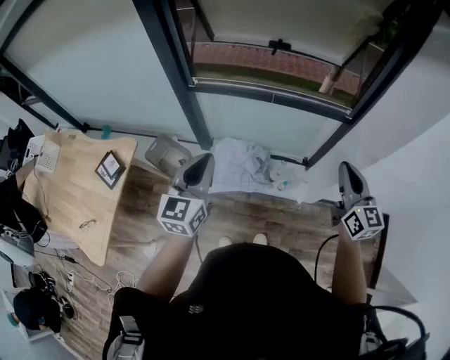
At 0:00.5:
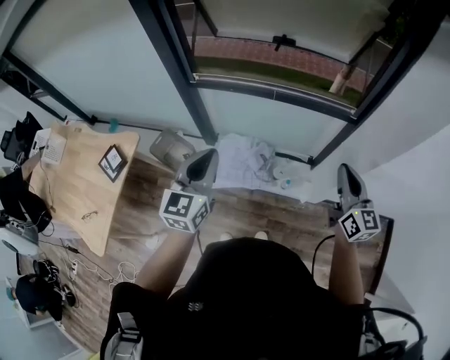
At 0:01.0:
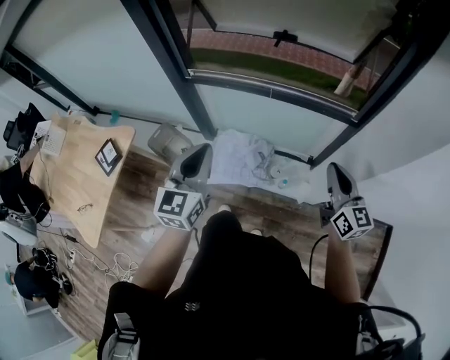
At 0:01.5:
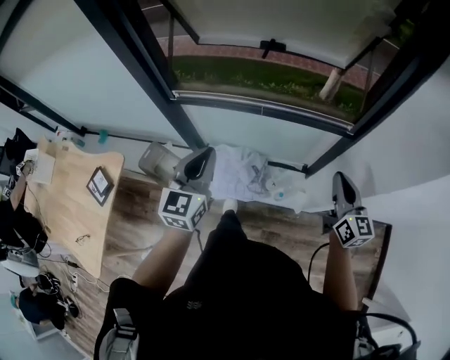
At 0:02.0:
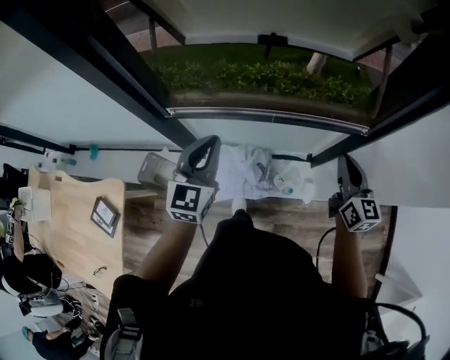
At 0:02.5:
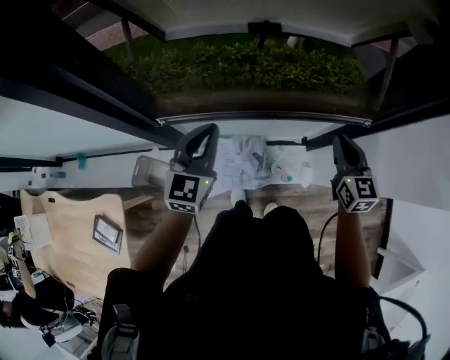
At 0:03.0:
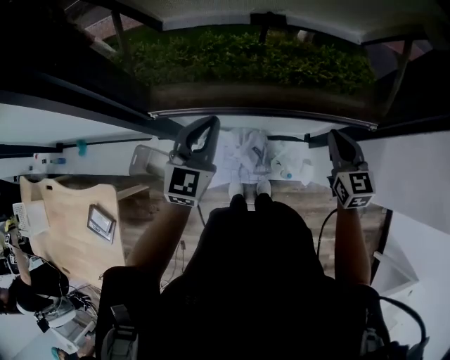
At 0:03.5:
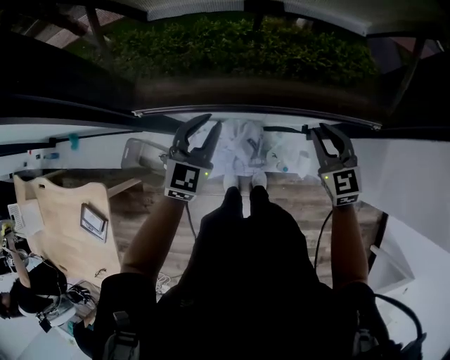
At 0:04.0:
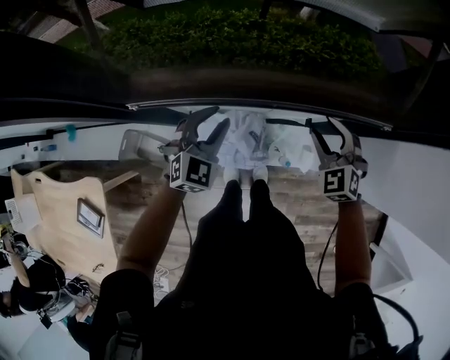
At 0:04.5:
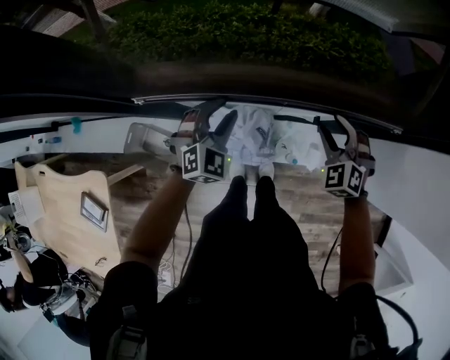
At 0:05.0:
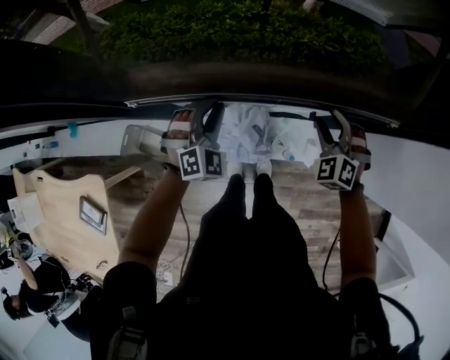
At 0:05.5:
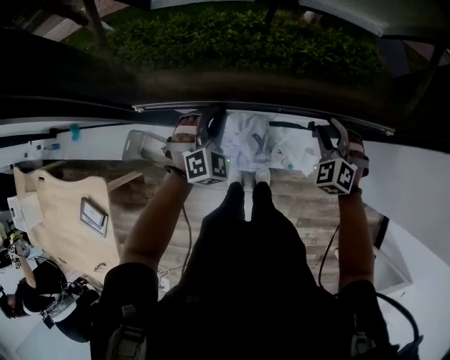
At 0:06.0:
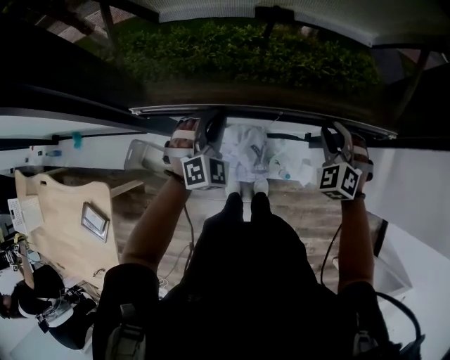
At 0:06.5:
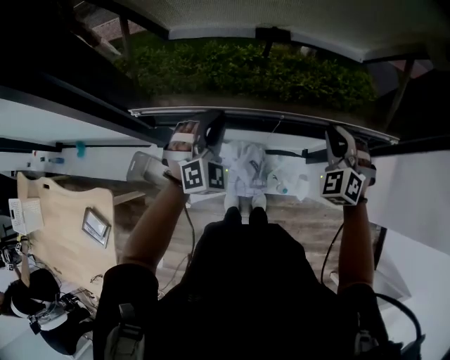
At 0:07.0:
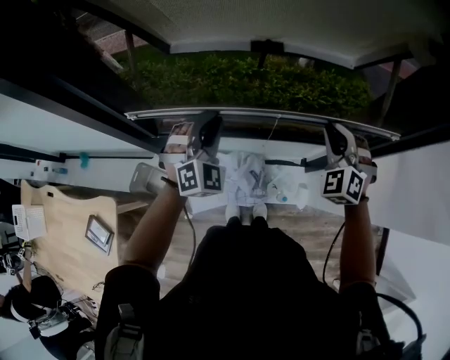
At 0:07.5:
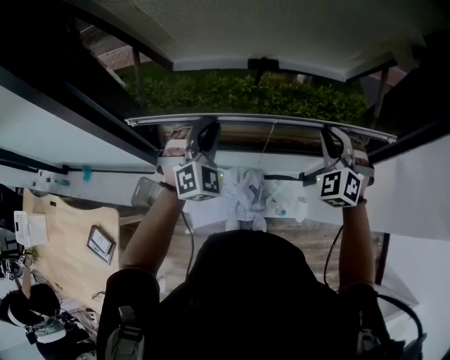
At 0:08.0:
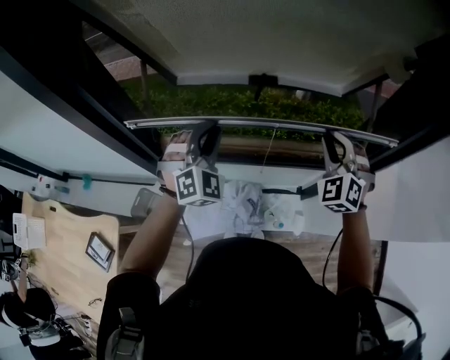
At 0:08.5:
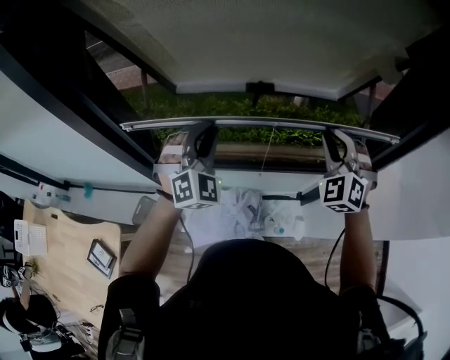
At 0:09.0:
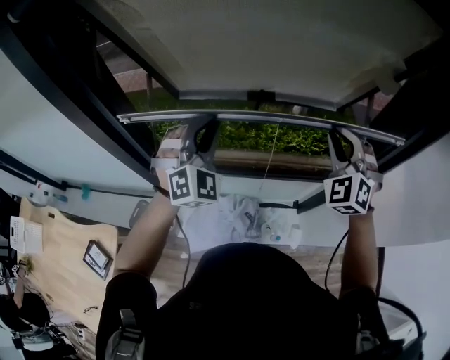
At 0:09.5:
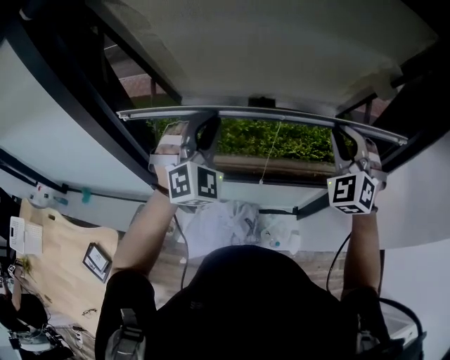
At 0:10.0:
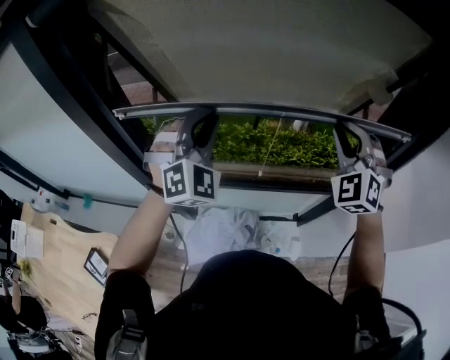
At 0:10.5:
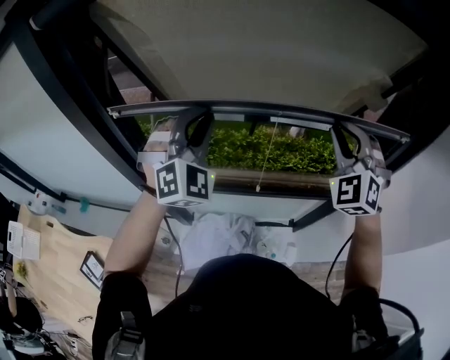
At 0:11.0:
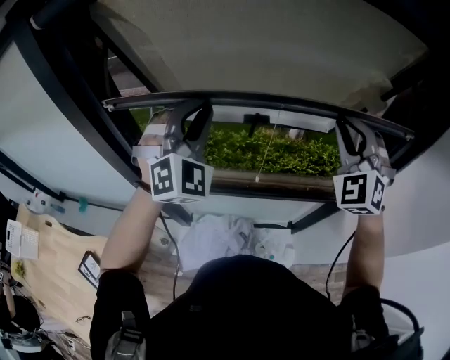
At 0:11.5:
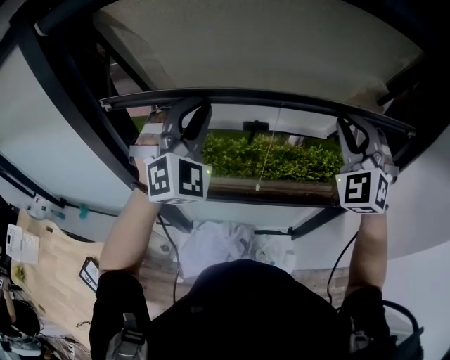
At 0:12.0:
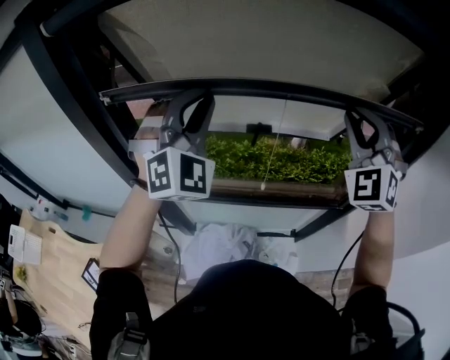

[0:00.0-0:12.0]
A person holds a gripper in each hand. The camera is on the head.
0:00.0 to 0:02.0: Both grippers travel together forward, about 30 cm.
0:02.0 to 0:04.0: The left gripper heads downward and forward, covering approximately 25 cm, changes its angle by approximately 30 degrees, and opens up; the right gripper heads downward, forward and to the left, covering about 20 cm, rotates around the line of its fingers by about 50 degrees, counterclockwise from behind, and opens up.
0:04.0 to 0:06.0: The left gripper rotates about 30 degrees.
0:06.0 to 0:08.0: The two grippers go approximately 20 cm upward.
0:08.0 to 0:10.0: The two grippers go approximately 15 cm upward.
0:10.0 to 0:12.0: Both grippers travel together upward, roughly 10 cm.

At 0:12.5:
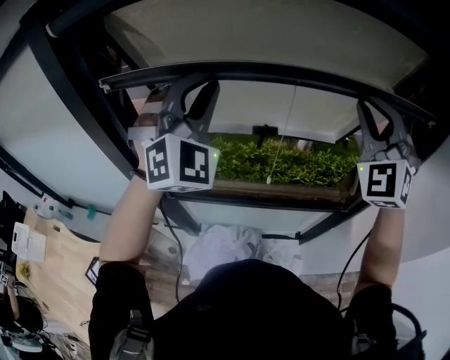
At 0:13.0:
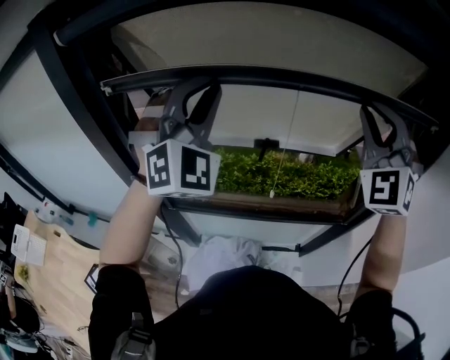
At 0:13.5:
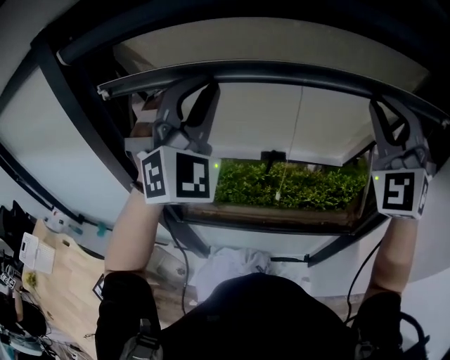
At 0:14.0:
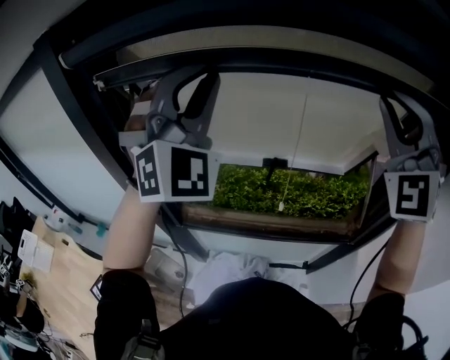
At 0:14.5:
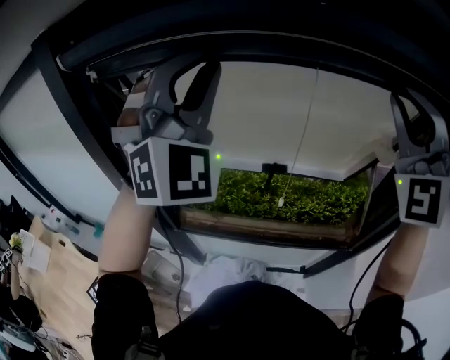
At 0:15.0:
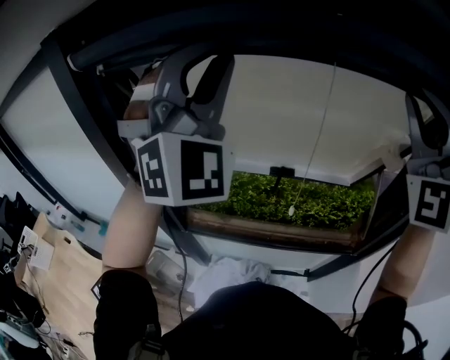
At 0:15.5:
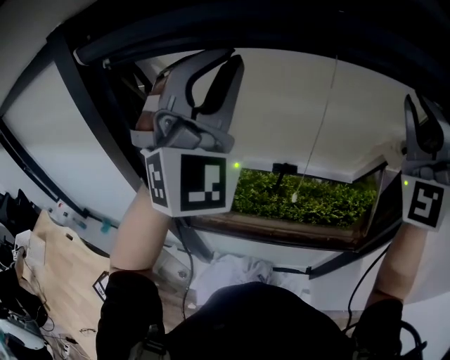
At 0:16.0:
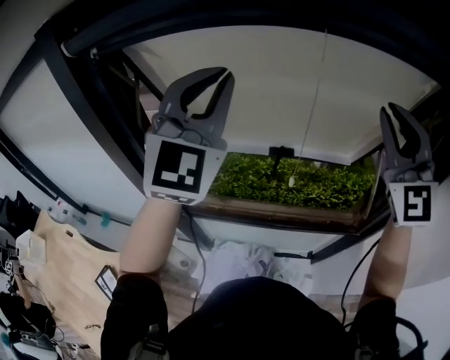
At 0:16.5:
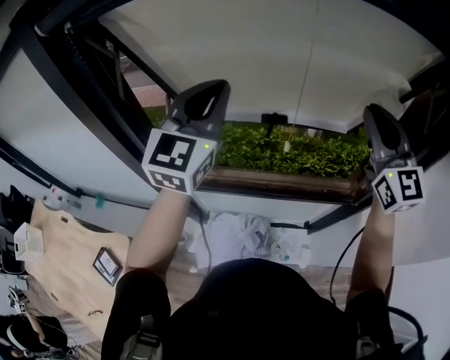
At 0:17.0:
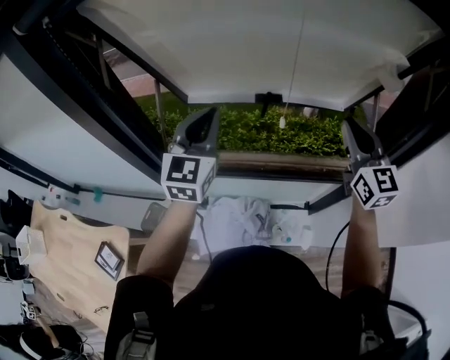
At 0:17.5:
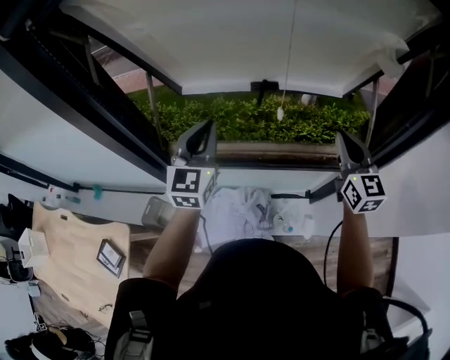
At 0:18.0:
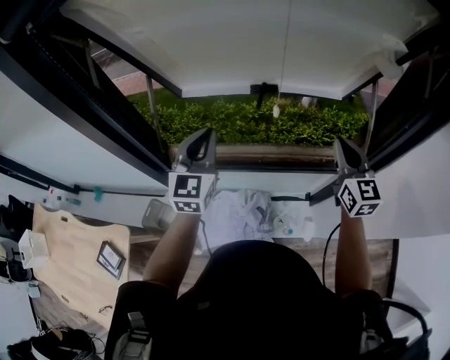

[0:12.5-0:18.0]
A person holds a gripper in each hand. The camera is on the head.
0:12.5 to 0:14.5: The grippers both shift upward by roughly 15 cm.
0:14.5 to 0:16.0: The left gripper changes its angle by about 30 degrees, while the right gripper heads downward, covering roughly 5 cm, and swivels roughly 30 degrees.
0:16.0 to 0:18.0: The grippers both shift downward by approximately 35 cm. The left gripper changes its angle by some 40 degrees, while the right gripper rotates around the line of its fingers by about 40 degrees, clockwise from behind.

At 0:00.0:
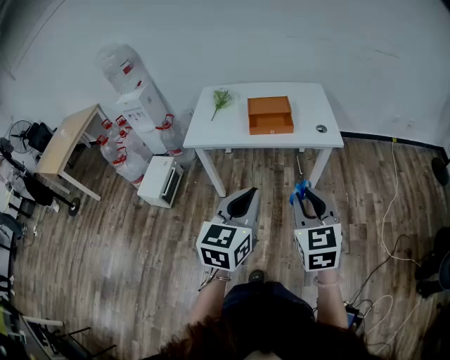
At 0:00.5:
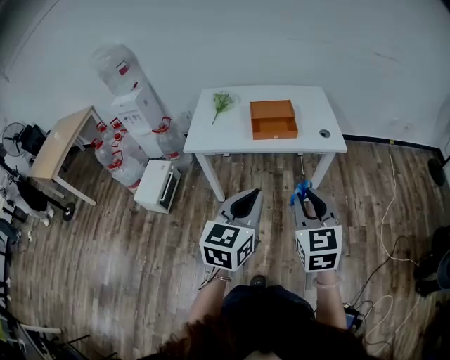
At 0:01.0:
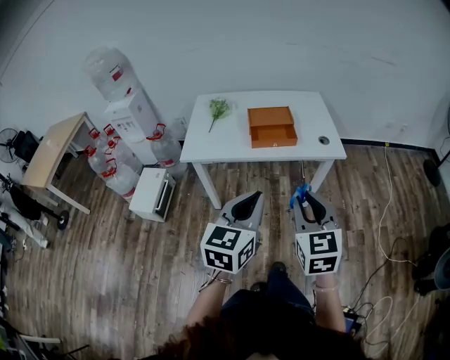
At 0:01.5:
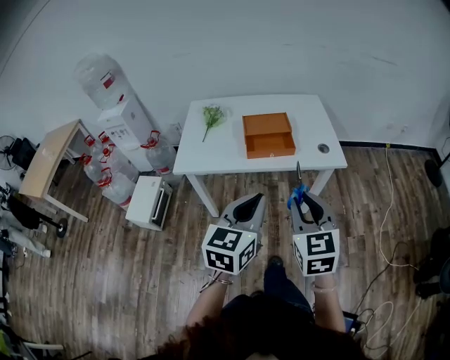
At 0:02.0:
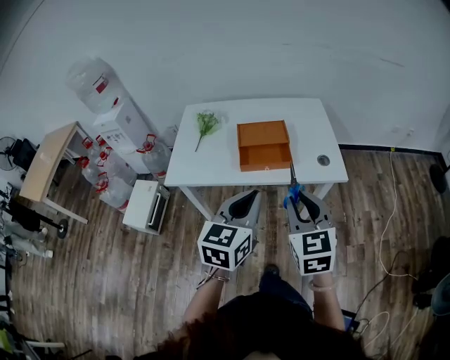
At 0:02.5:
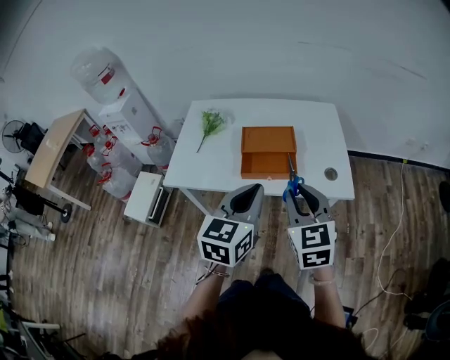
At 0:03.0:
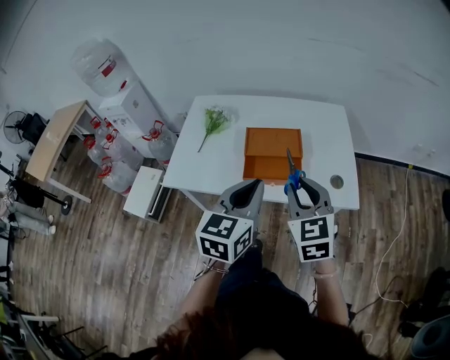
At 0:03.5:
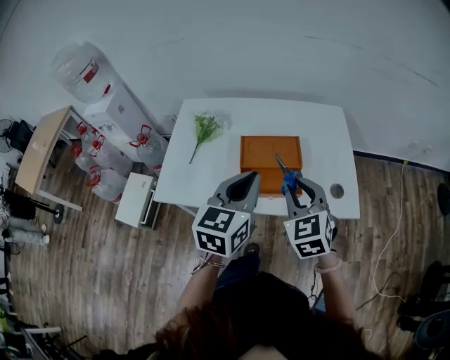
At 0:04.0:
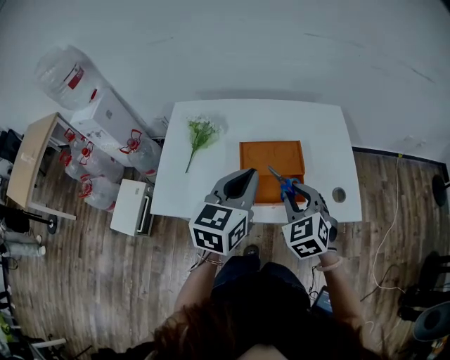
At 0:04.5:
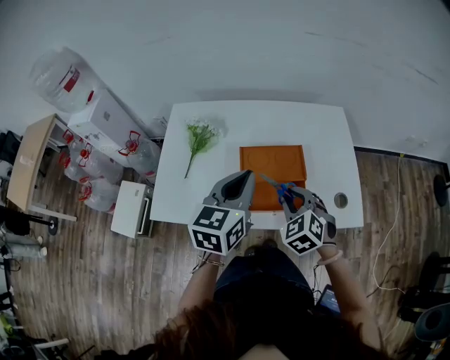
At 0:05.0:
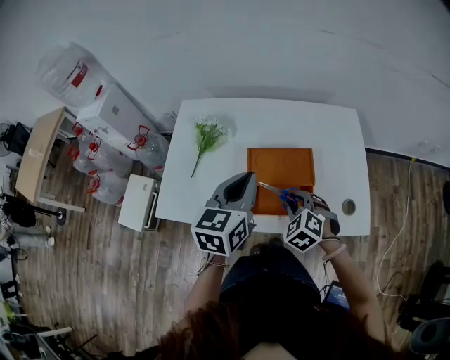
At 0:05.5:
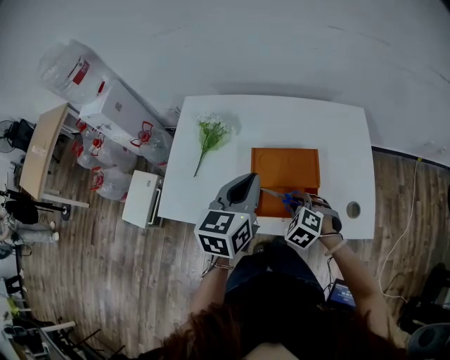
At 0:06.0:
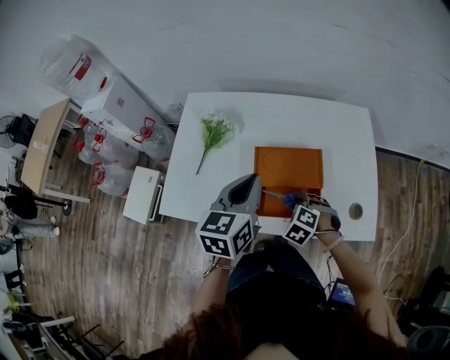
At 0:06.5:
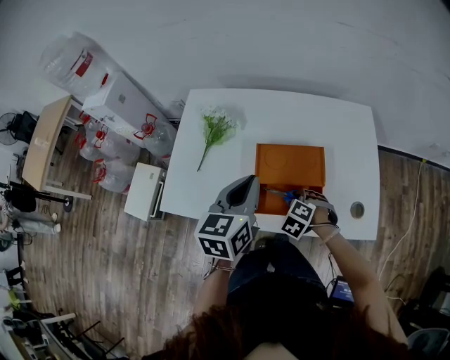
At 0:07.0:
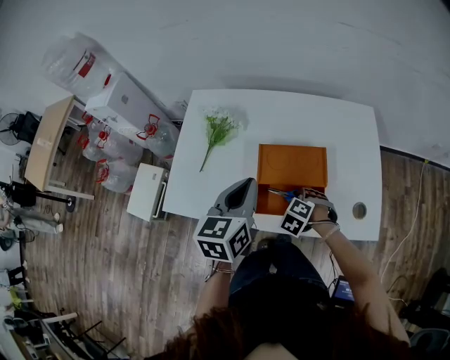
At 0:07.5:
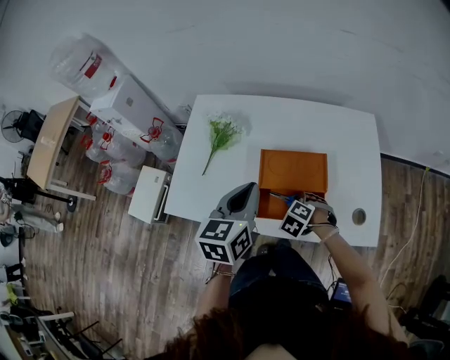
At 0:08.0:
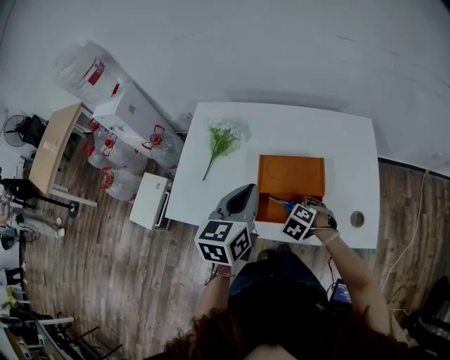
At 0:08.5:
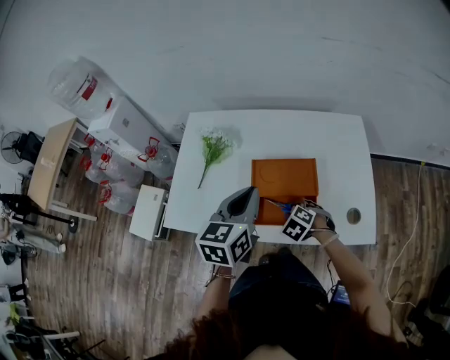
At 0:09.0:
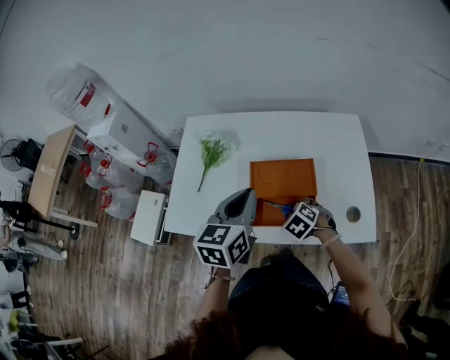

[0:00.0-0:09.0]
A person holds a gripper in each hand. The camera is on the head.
0:00.0 to 0:02.0: Both grippers move forward, about 25 cm.
0:02.0 to 0:04.5: The right gripper is displaced forward and downward by roughly 35 cm, and turns by approximately 40 degrees. Meanwhile the left gripper heads forward, covering roughly 30 cm.
0:04.5 to 0:07.0: The left gripper changes place by some 5 cm, while the right gripper heads downward, covering some 15 cm, and swivels roughly 40 degrees.
0:07.0 to 0:09.0: The right gripper rotates about 20 degrees.
